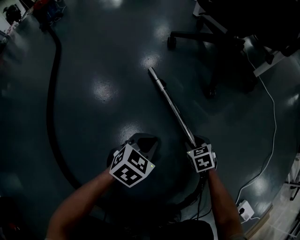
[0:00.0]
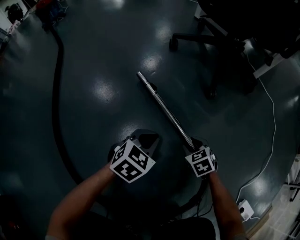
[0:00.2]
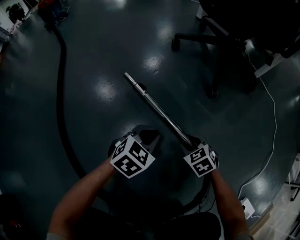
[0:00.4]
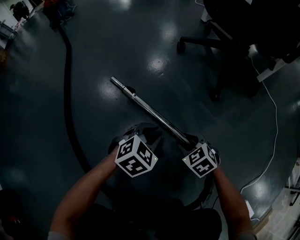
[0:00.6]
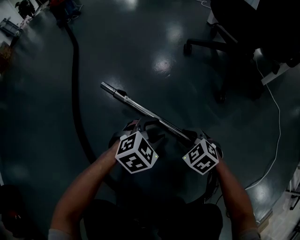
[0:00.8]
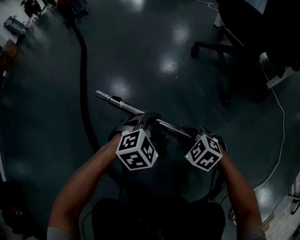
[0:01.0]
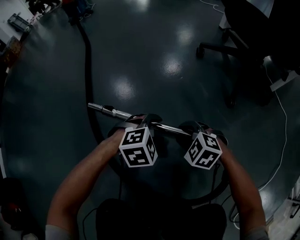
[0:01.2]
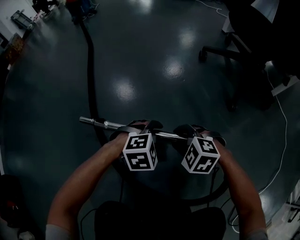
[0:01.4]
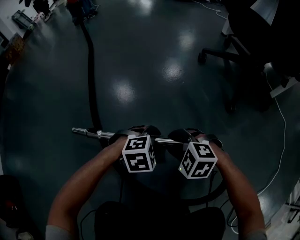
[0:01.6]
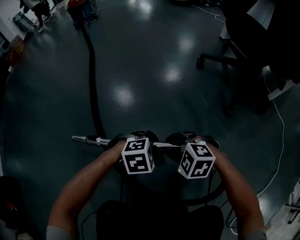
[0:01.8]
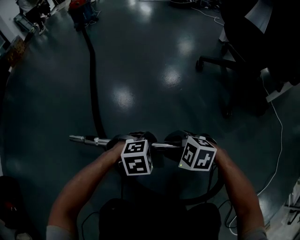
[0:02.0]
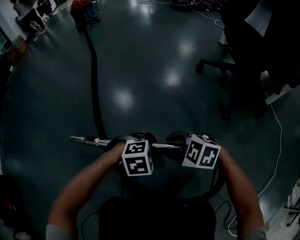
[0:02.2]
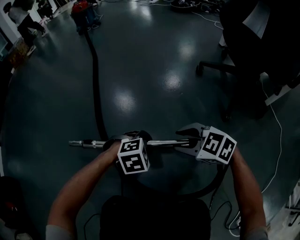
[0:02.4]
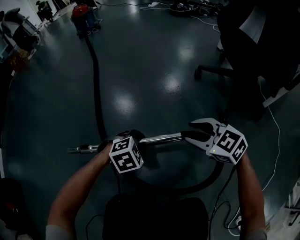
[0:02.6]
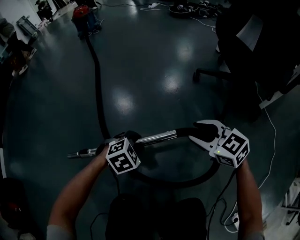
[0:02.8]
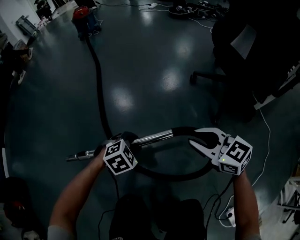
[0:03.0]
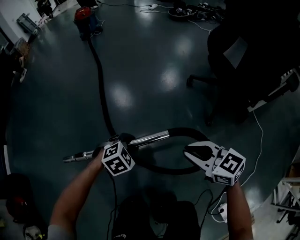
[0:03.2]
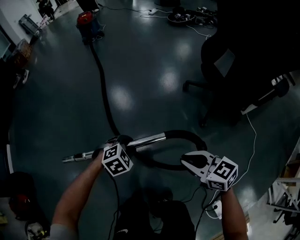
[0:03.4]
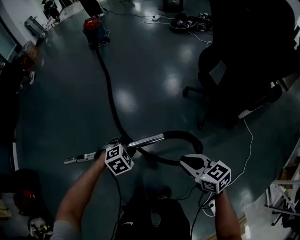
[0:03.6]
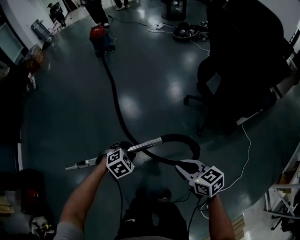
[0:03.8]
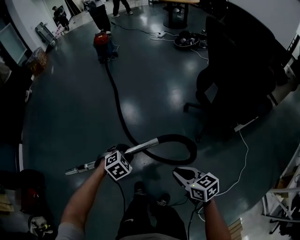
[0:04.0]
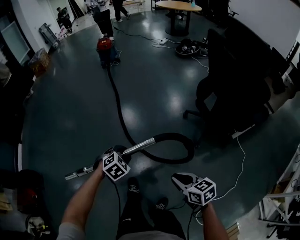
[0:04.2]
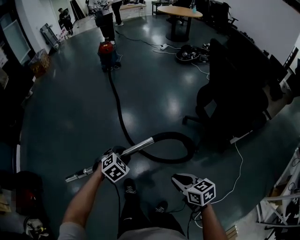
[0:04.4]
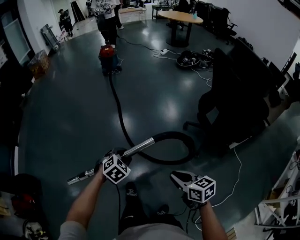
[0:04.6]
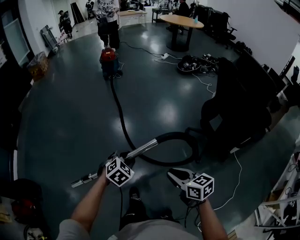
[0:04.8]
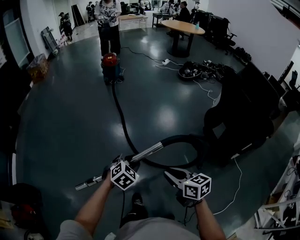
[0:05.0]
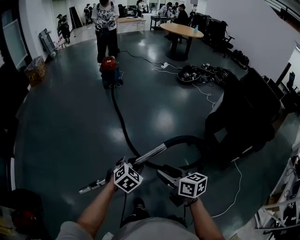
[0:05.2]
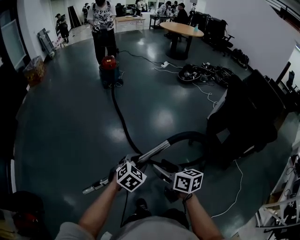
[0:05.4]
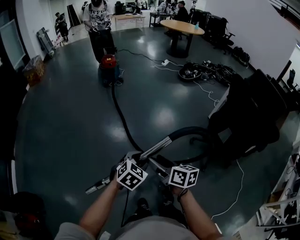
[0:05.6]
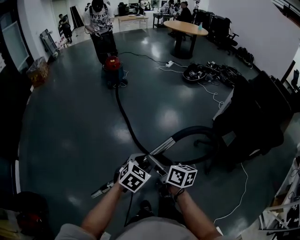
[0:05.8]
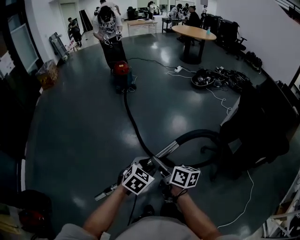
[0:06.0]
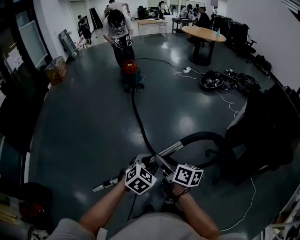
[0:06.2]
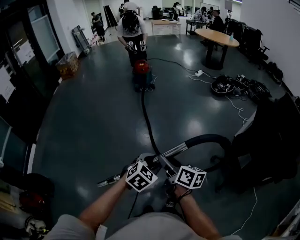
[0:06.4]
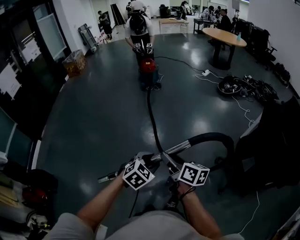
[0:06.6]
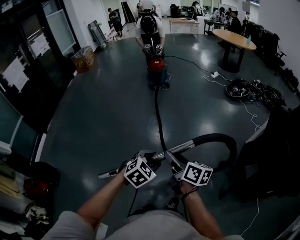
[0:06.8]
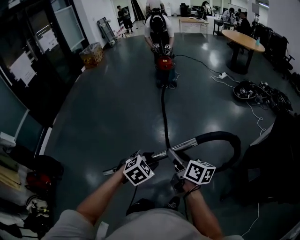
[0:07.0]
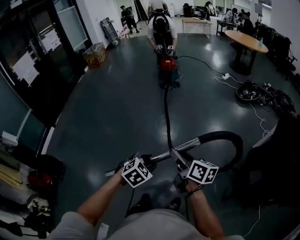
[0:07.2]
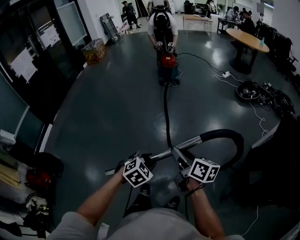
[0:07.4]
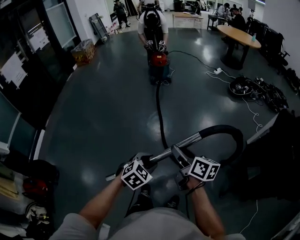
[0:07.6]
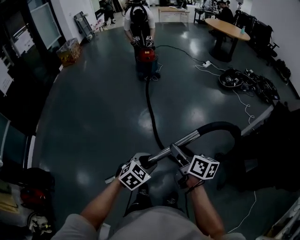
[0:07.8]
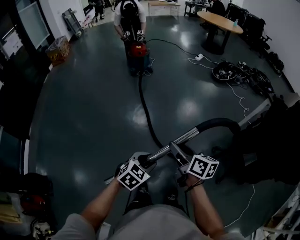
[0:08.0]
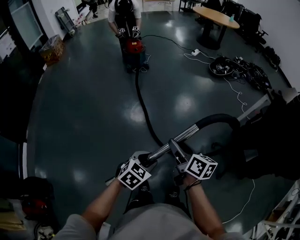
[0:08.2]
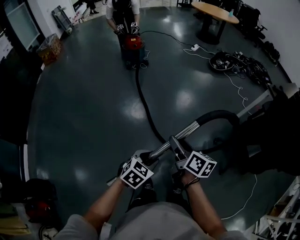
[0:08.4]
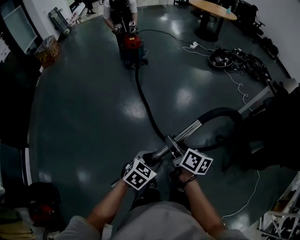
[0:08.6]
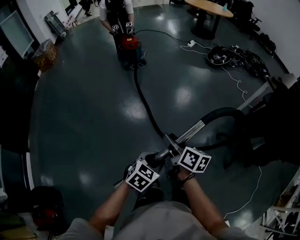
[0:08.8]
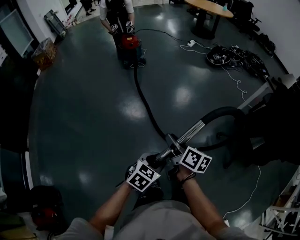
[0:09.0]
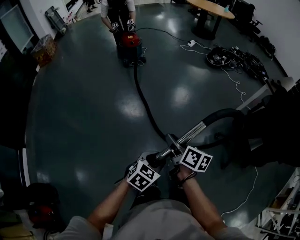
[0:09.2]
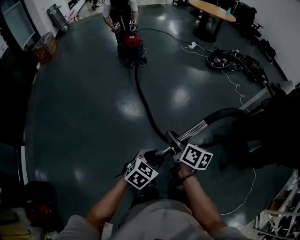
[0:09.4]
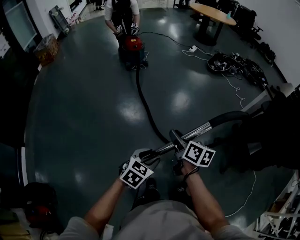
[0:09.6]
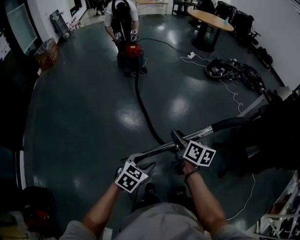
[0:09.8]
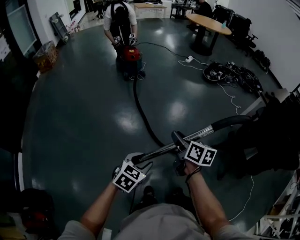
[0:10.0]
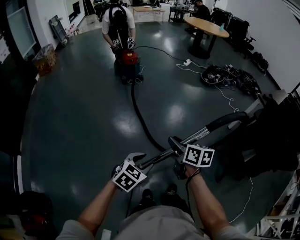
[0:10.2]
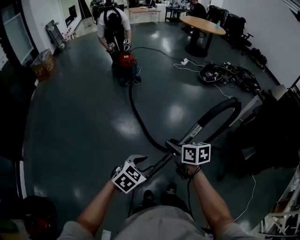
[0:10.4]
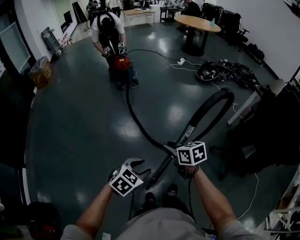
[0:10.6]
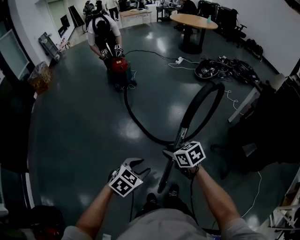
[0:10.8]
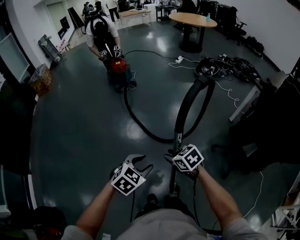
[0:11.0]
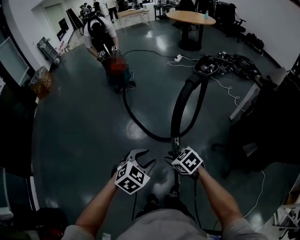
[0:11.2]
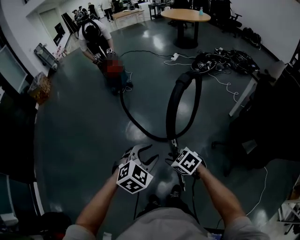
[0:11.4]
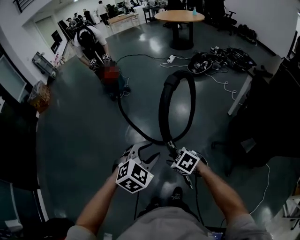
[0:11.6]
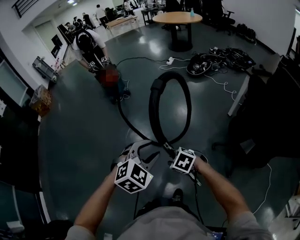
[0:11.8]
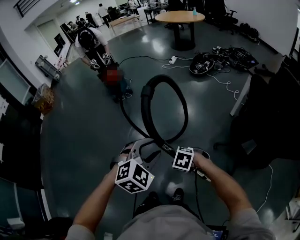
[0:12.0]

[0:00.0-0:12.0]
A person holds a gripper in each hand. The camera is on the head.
0:00.0 to 0:01.6: The left gripper ends up approximately 10 cm from where it was, turns by about 30 degrees, and opens its fingers. Meanwhile the right gripper ends up about 30 cm from where it was, and rotates around the line of its fingers by about 60 degrees, counterclockwise from behind.
0:01.6 to 0:03.0: The left gripper goes roughly 20 cm upward. Meanwhile the right gripper goes some 30 cm upward, and tips its fingers upward by approximately 30 degrees.
0:03.0 to 0:04.4: The left gripper travels upward by roughly 40 cm, and changes its angle by about 20 degrees. Meanwhile the right gripper moves upward and backward, roughly 35 cm, and swivels about 20 degrees.
0:04.4 to 0:06.0: The right gripper heads forward and to the left, covering about 40 cm, turns by some 30 degrees, and opens up. The left gripper shifts approximately 25 cm forward, upward and to the left, and changes its angle by roughly 20 degrees.
0:06.0 to 0:07.6: The grippers both shift forward by about 10 cm.
0:07.6 to 0:09.0: The right gripper heads to the left and downward, covering some 15 cm, and changes its angle by roughly 20 degrees; the left gripper moves to the left, roughly 5 cm, and changes its angle by about 20 degrees.
0:09.0 to 0:10.4: The right gripper changes its angle by some 30 degrees, while the left gripper ends up about 5 cm from where it was.
0:10.4 to 0:12.0: The left gripper heads to the right and upward, covering about 25 cm, and turns by about 40 degrees. The right gripper is displaced to the right and downward by some 20 cm, and angles its fingers downward, by roughly 40 degrees.

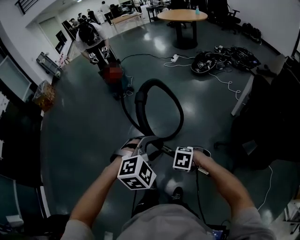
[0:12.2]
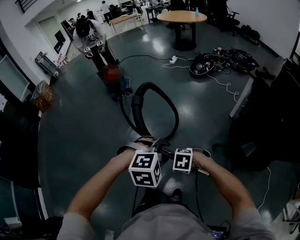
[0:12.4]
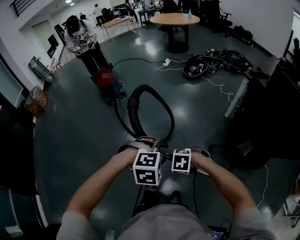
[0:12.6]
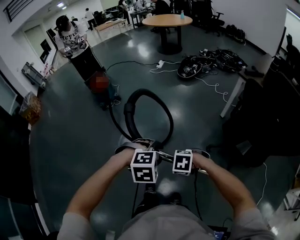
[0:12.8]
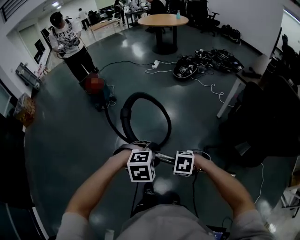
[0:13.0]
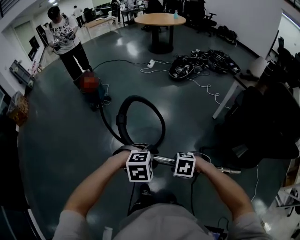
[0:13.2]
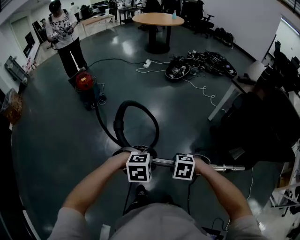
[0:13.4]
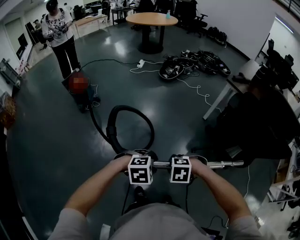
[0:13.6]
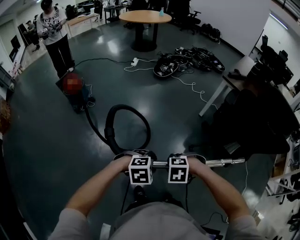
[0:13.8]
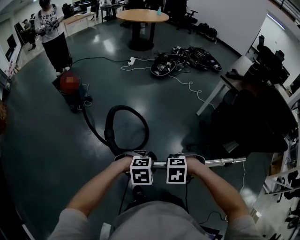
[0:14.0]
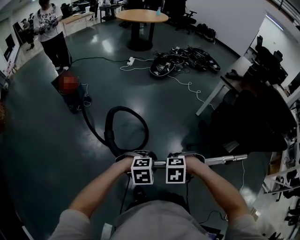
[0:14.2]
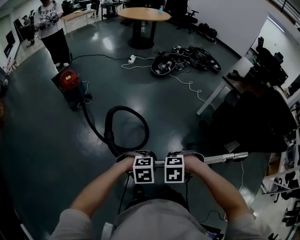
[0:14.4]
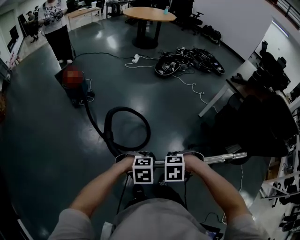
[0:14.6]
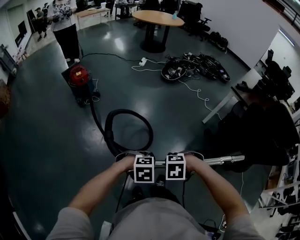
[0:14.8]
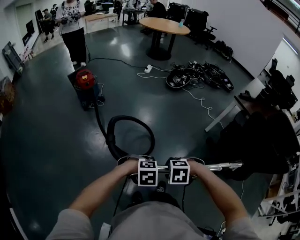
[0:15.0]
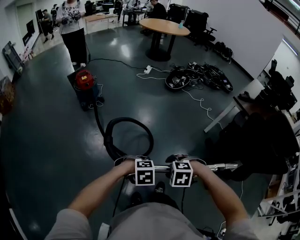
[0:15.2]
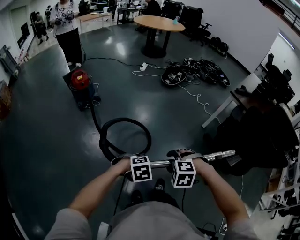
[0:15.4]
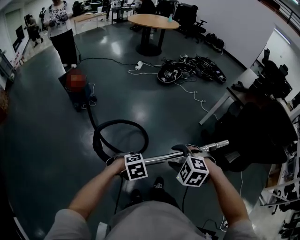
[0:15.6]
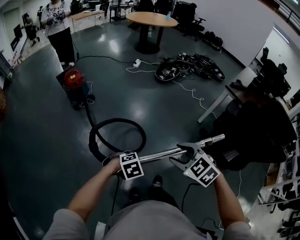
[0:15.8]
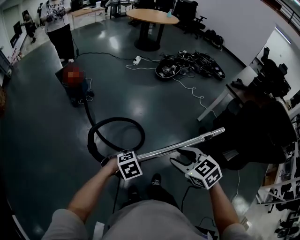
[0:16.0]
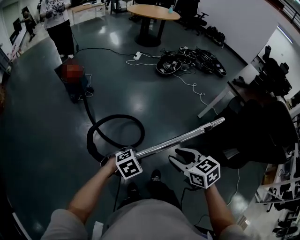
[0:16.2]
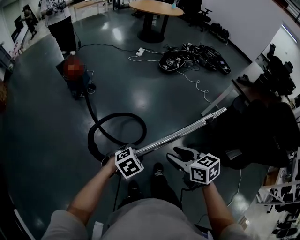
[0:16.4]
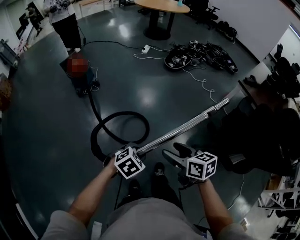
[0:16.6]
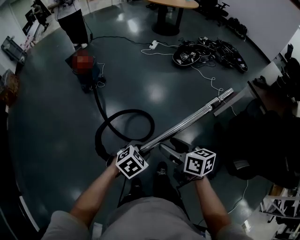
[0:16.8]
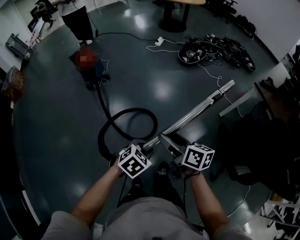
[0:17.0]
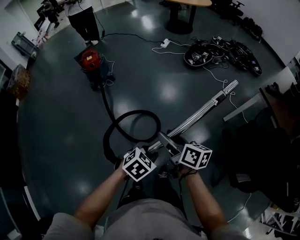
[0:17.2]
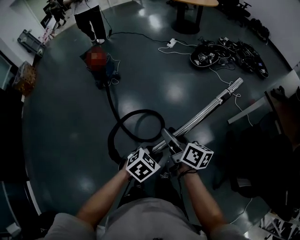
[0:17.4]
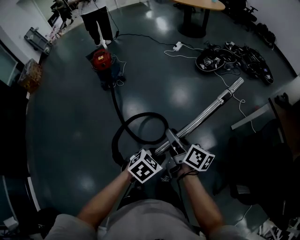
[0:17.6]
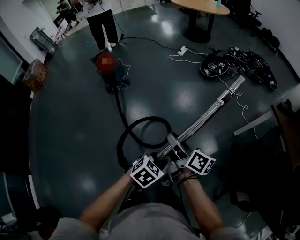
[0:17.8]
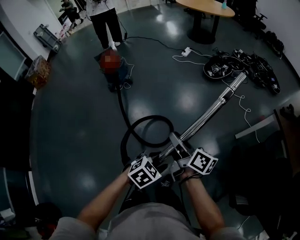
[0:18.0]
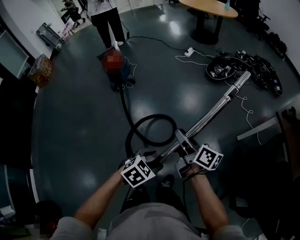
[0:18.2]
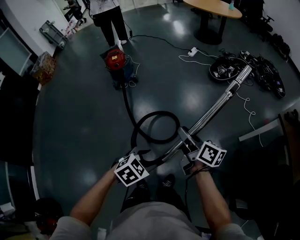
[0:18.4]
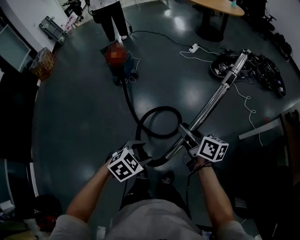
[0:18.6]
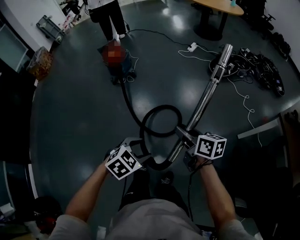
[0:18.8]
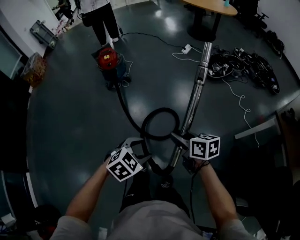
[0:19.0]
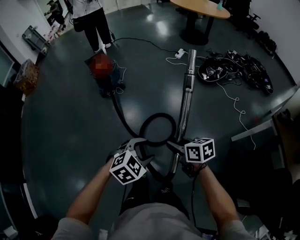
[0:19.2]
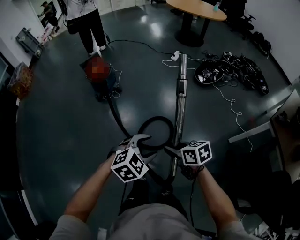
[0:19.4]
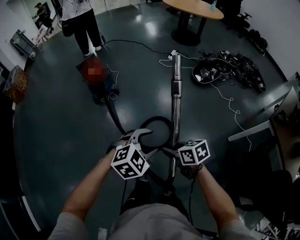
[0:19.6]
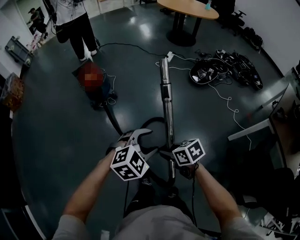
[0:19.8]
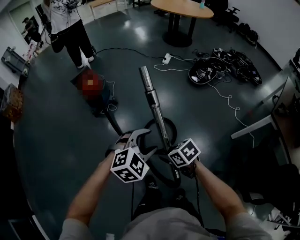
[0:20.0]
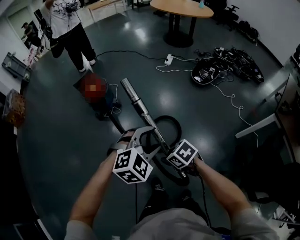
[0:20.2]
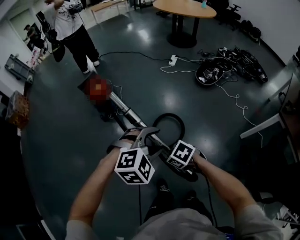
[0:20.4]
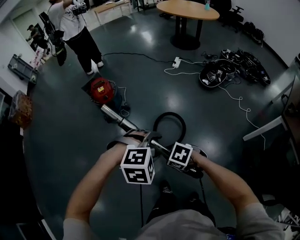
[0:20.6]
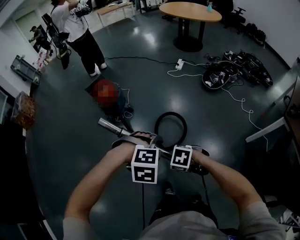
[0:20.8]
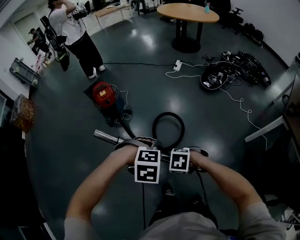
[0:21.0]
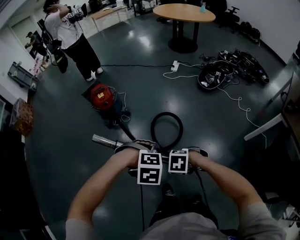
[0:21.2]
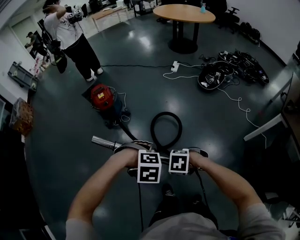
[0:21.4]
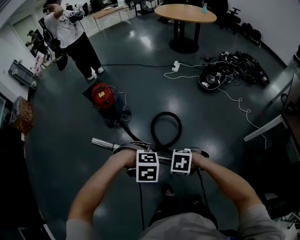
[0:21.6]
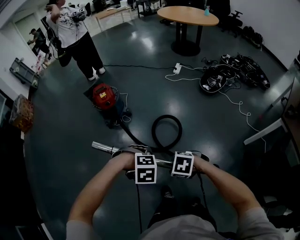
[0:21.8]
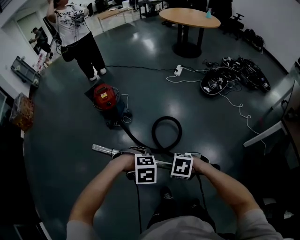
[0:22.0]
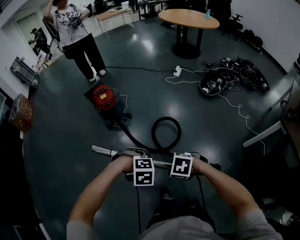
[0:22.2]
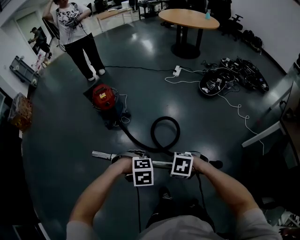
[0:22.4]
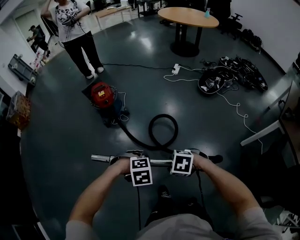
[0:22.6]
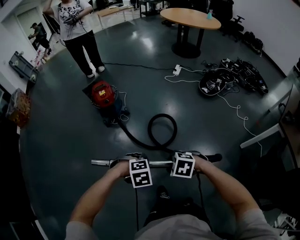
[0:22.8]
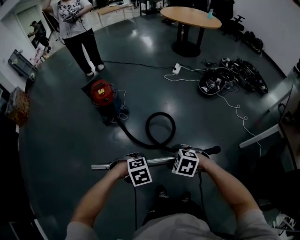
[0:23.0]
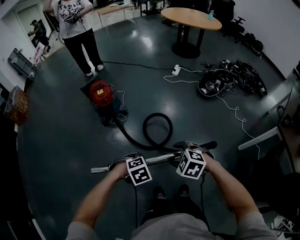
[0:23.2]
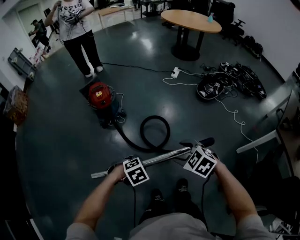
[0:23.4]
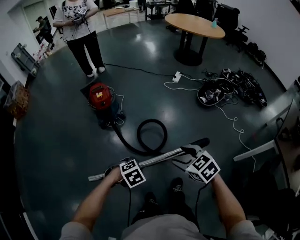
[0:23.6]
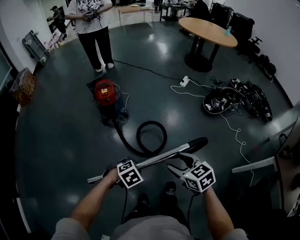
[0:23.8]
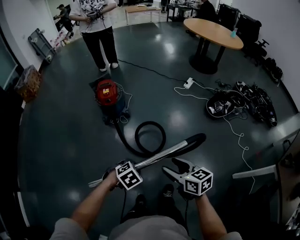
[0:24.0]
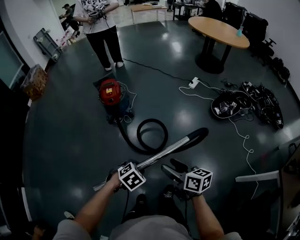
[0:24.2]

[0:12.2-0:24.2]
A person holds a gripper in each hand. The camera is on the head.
0:12.2 to 0:13.8: The right gripper ends up some 15 cm from where it was. Meanwhile the left gripper goes some 15 cm downward, and rotates approximately 40 degrees.
0:13.8 to 0:15.2: The left gripper shifts by about 10 cm, while the right gripper ends up some 10 cm from where it was, and opens its fingers.
0:15.2 to 0:16.6: The left gripper moves approximately 10 cm, and changes its angle by approximately 30 degrees. The right gripper moves approximately 10 cm, and twists about 70 degrees clockwise, seen from behind.
0:16.6 to 0:18.2: The right gripper heads forward, covering about 25 cm, rotates roughly 30 degrees, and closes. The left gripper shifts about 15 cm forward and to the right, and opens up.
0:18.2 to 0:19.8: The left gripper is displaced forward and to the left by approximately 30 cm, and changes its angle by approximately 30 degrees. The right gripper goes about 25 cm to the left, forward and downward, and points its fingers approximately 40 degrees further downward.
0:19.8 to 0:21.2: The right gripper ends up roughly 10 cm from where it was, and swivels approximately 60 degrees, while the left gripper changes place by roughly 10 cm, and angles its fingers downward, by approximately 40 degrees.
0:21.2 to 0:22.6: The left gripper goes approximately 5 cm downward, and closes.
0:22.6 to 0:24.2: The right gripper ends up about 20 cm from where it was, tilts its fingers approximately 50 degrees upward, and opens up, while the left gripper changes place by some 15 cm, and rolls counterclockwise, seen from behind, by some 50 degrees.
